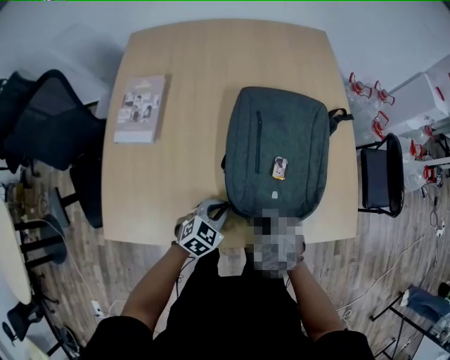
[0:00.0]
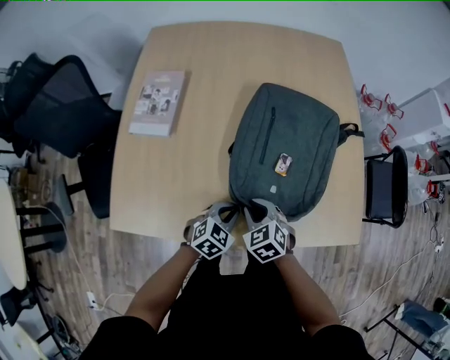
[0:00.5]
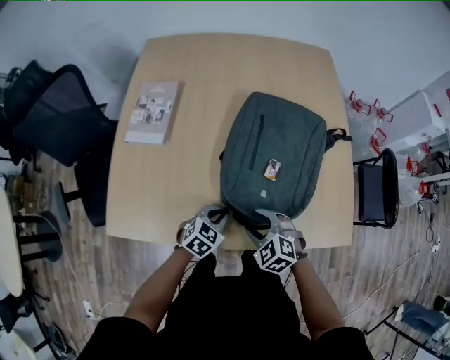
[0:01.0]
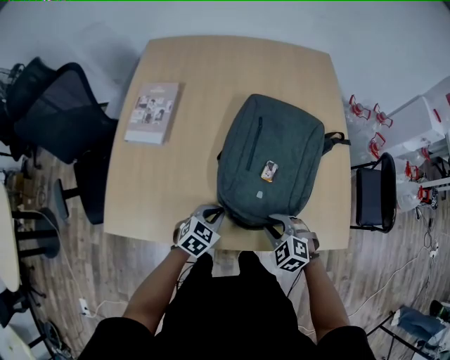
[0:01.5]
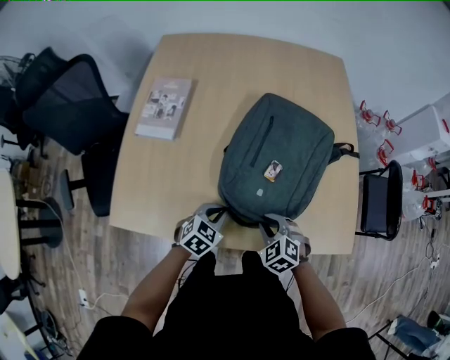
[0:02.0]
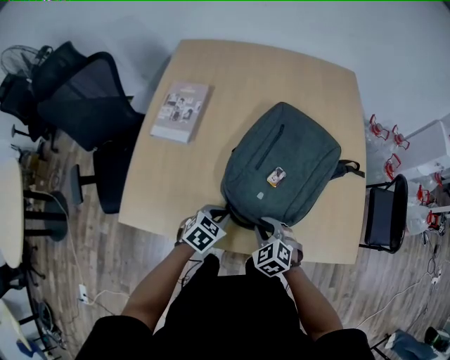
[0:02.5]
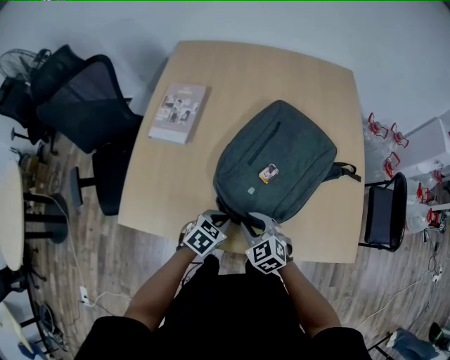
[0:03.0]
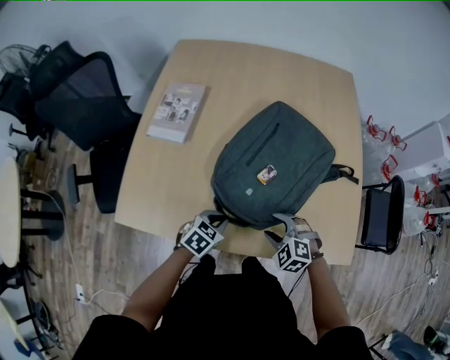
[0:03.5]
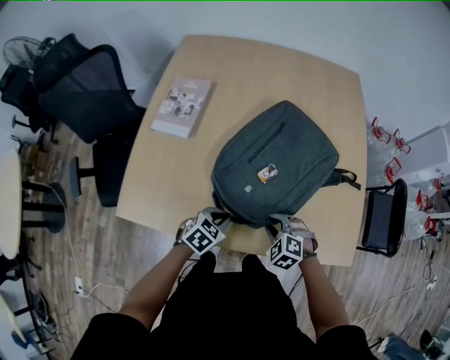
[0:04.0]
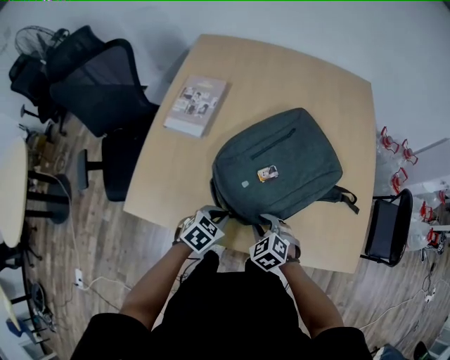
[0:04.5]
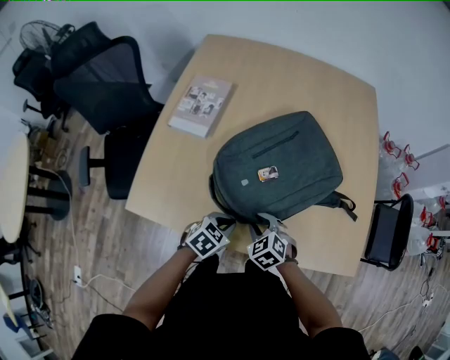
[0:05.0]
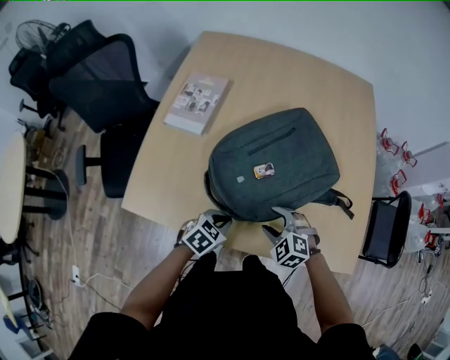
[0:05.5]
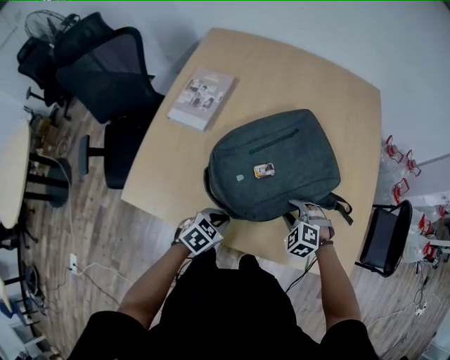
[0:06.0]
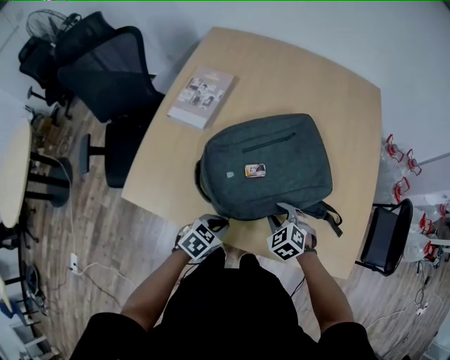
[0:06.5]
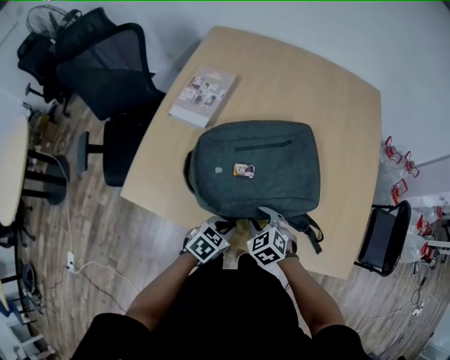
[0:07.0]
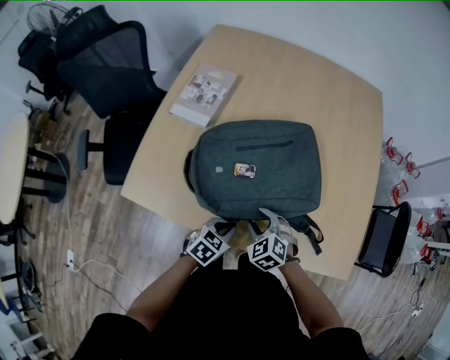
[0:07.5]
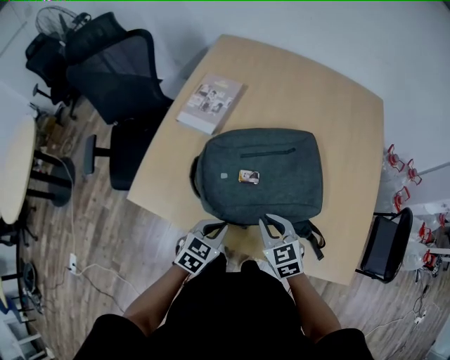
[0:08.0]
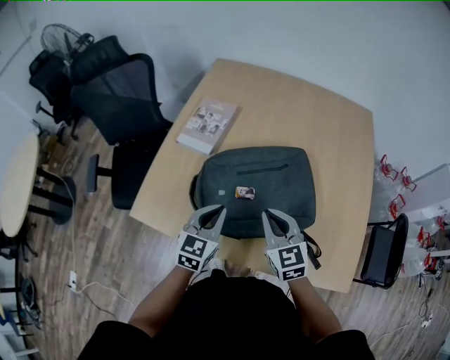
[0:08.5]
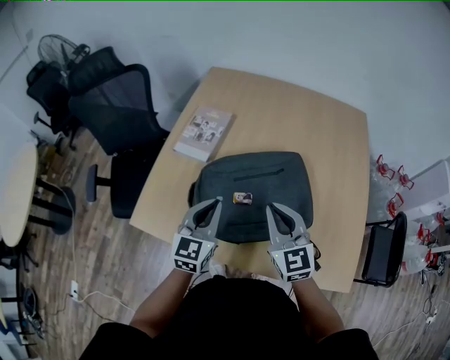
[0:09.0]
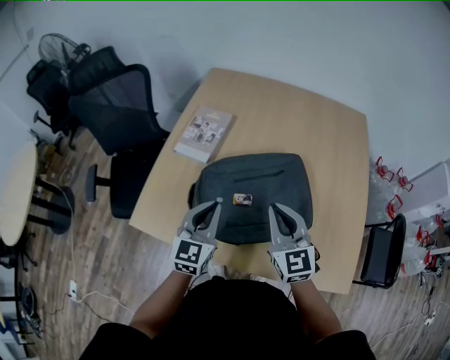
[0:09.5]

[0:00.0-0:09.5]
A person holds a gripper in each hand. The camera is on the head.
0:00.0 to 0:02.0: The right gripper goes left and right, some 10 cm each way, reversing 2 times, and opens and closes again.
0:02.0 to 0:04.0: The right gripper moves some 10 cm to the left and comes back, and opens, then closes again.
0:04.0 to 0:05.5: The right gripper opens up.
0:07.5 to 0:09.5: The left gripper travels upward and forward by about 25 cm, and tilts its fingers roughly 40 degrees upward; the right gripper moves upward, roughly 25 cm, tips its fingers upward by some 40 degrees, and closes up.

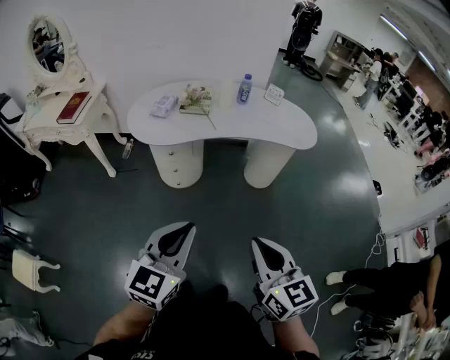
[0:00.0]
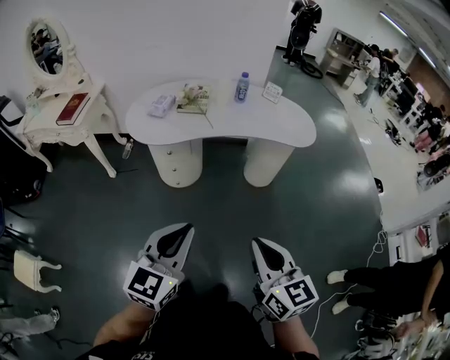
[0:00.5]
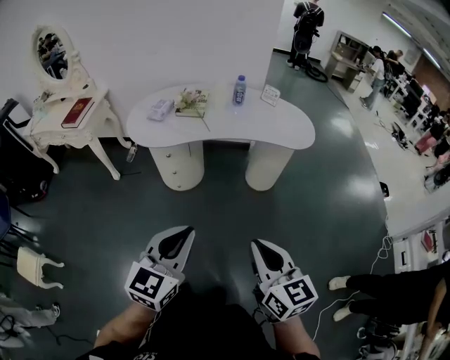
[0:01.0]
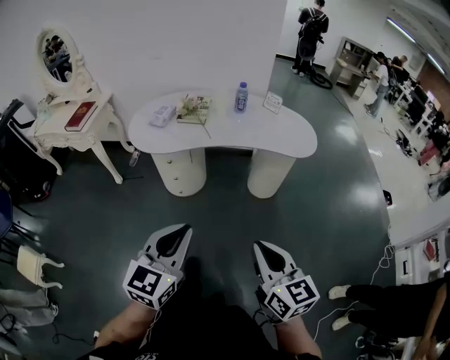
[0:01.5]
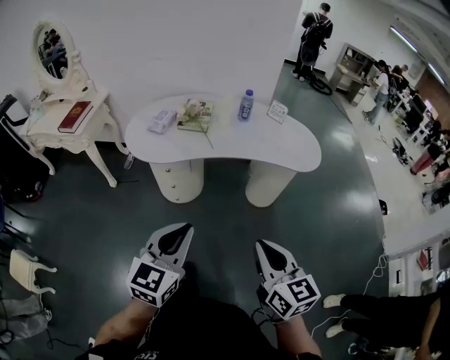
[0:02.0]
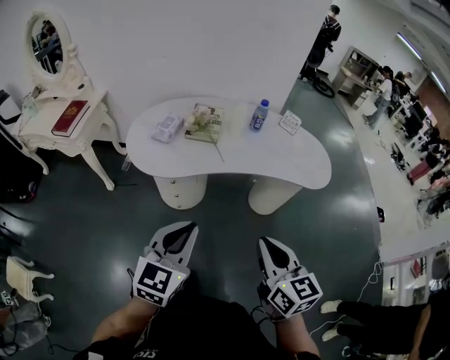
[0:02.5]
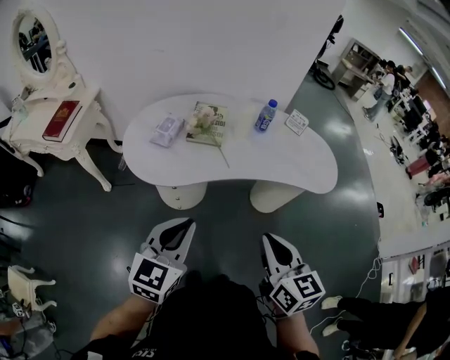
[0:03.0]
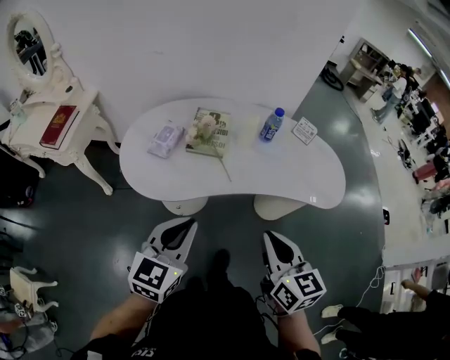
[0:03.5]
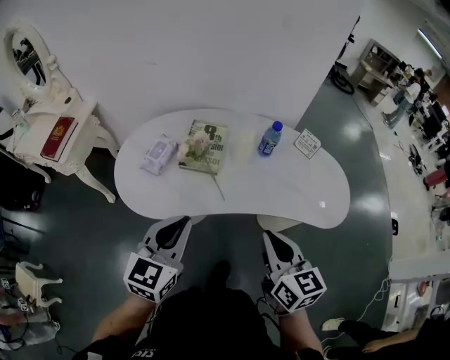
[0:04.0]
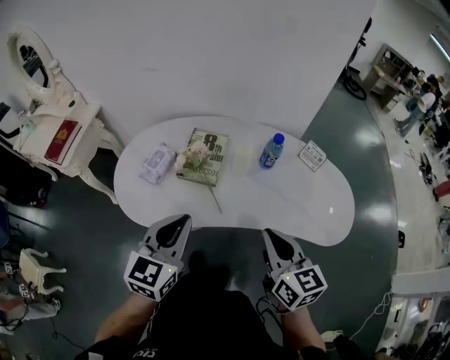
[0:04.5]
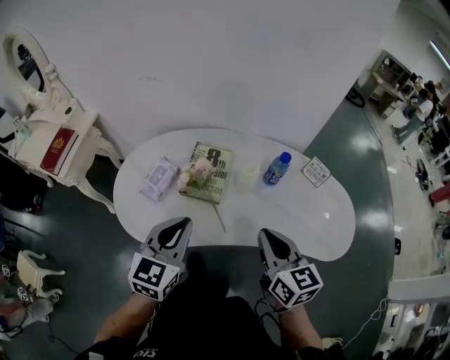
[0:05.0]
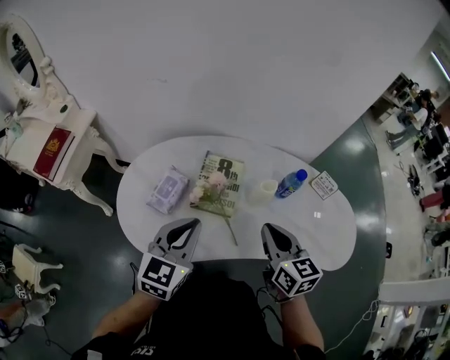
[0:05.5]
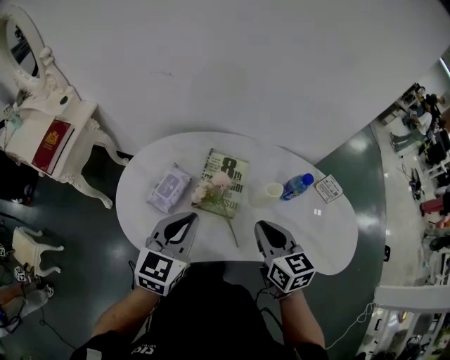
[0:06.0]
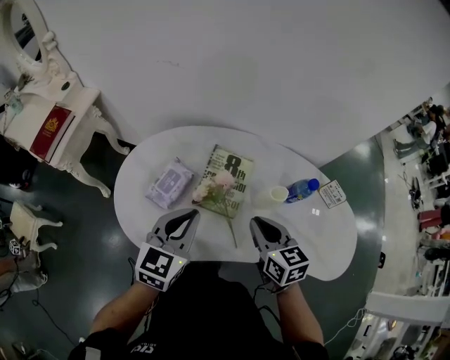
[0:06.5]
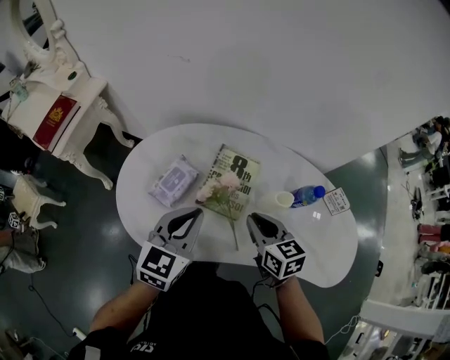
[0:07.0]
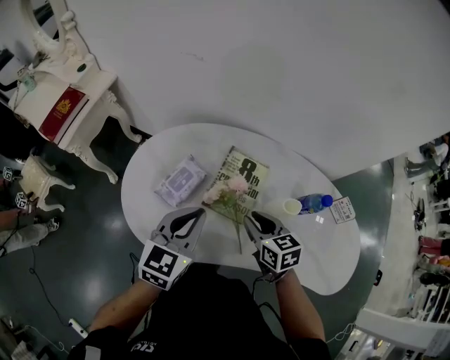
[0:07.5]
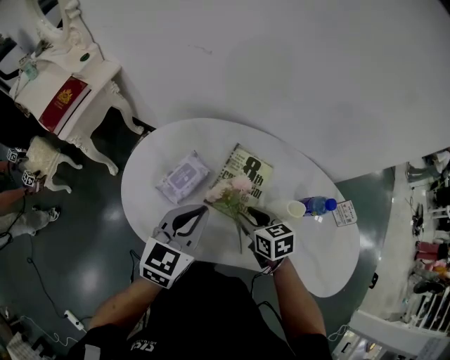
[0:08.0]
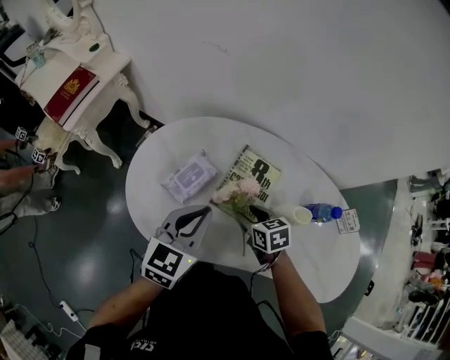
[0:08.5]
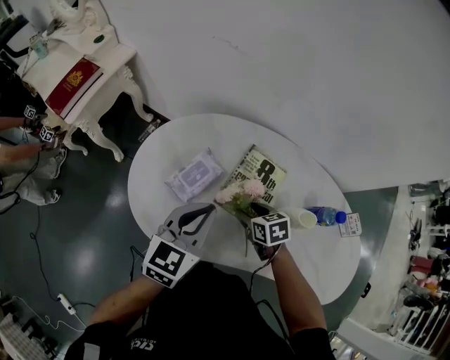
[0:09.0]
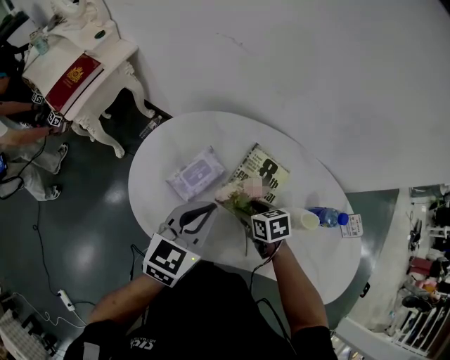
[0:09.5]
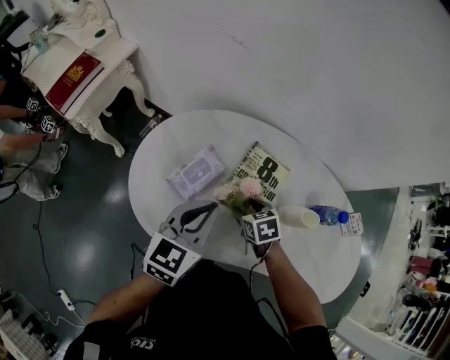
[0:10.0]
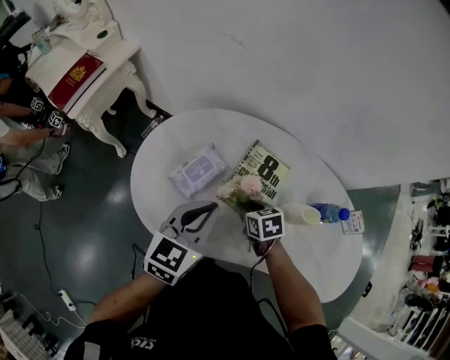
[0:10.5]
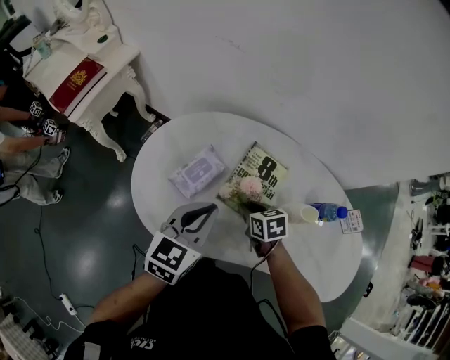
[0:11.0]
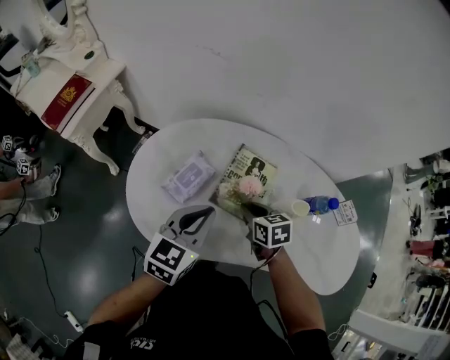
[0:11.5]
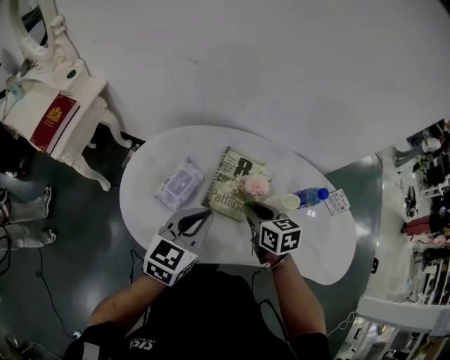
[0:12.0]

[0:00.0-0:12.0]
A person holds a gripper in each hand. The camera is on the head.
0:00.0 to 0:02.0: The right gripper moves forward and to the right, roughly 10 cm, while the left gripper travels forward by about 10 cm.
0:02.0 to 0:04.0: Both grippers move forward, roughly 35 cm.
0:04.0 to 0:06.0: Both grippers travel together forward, some 25 cm.
0:06.0 to 0:08.0: The right gripper shifts roughly 20 cm downward, forward and to the left, rotates roughly 30 degrees, and opens, while the left gripper changes place by approximately 5 cm.
0:08.0 to 0:10.0: The right gripper heads downward, covering about 10 cm, and opens its fingers.
0:10.0 to 0:12.0: The right gripper moves upward, approximately 15 cm, turns by some 30 degrees, and closes its fingers.

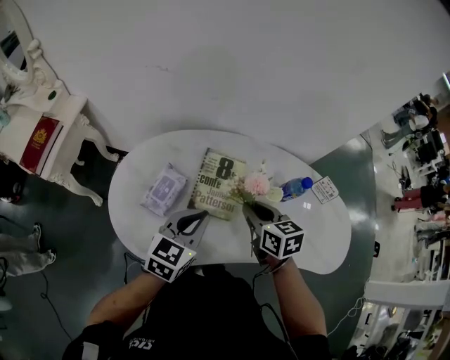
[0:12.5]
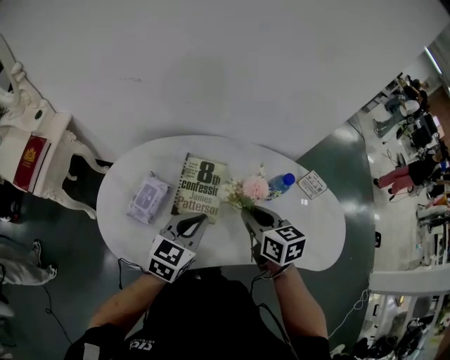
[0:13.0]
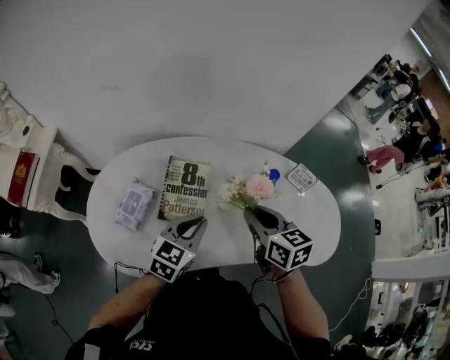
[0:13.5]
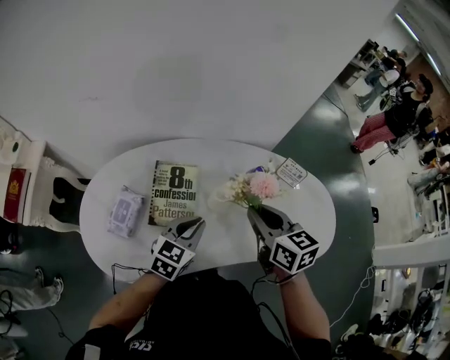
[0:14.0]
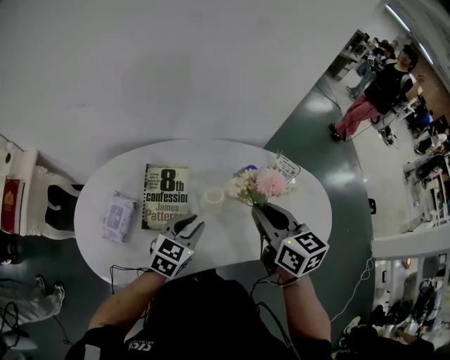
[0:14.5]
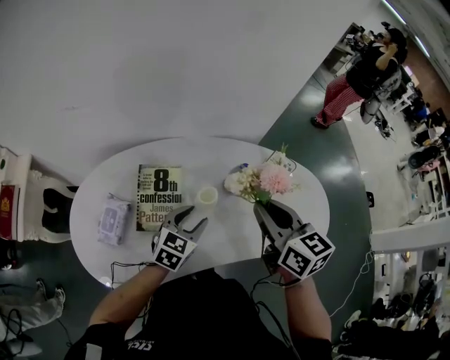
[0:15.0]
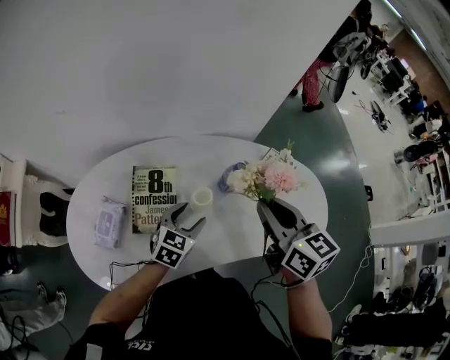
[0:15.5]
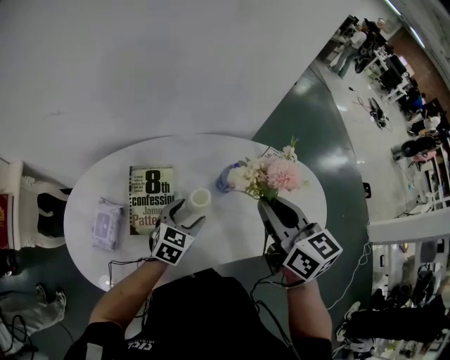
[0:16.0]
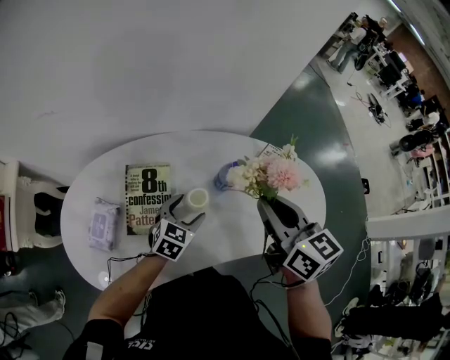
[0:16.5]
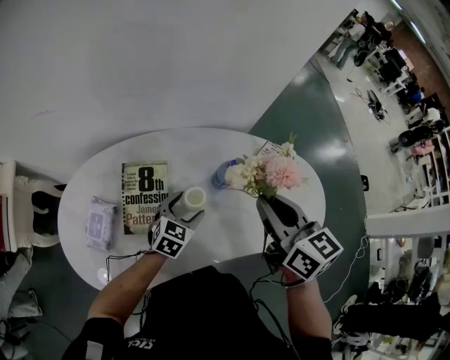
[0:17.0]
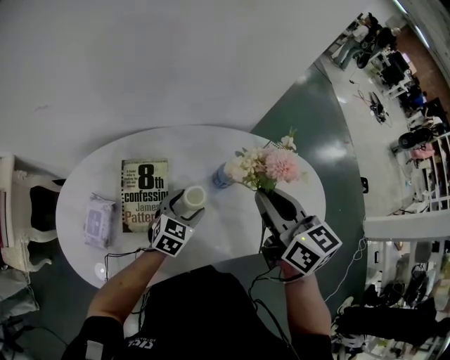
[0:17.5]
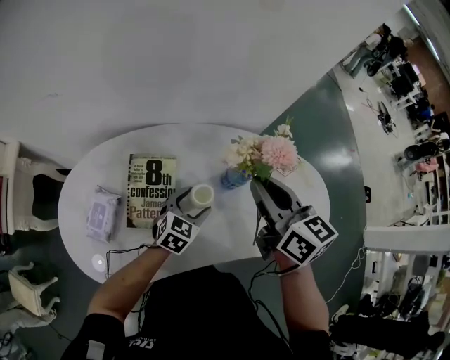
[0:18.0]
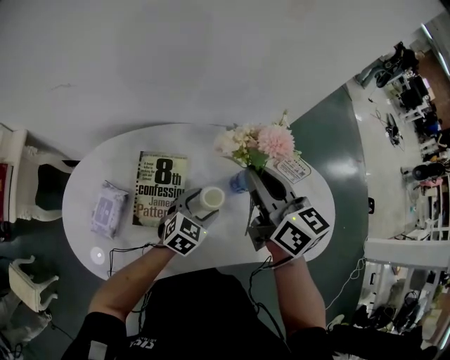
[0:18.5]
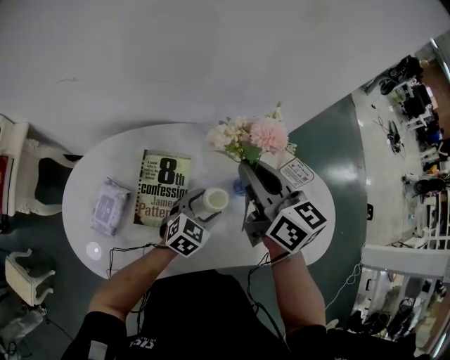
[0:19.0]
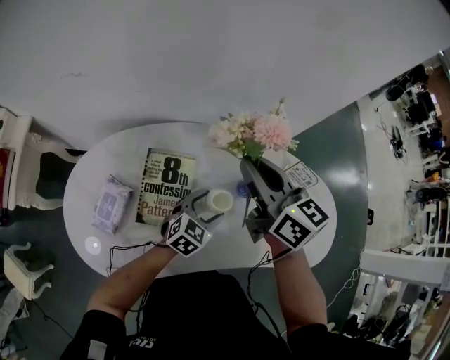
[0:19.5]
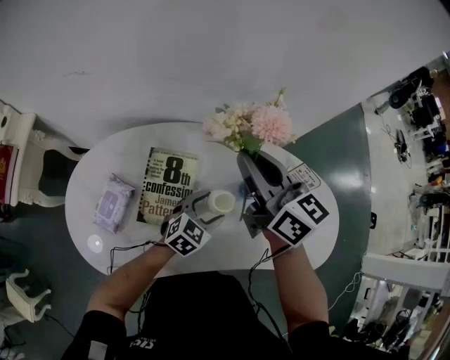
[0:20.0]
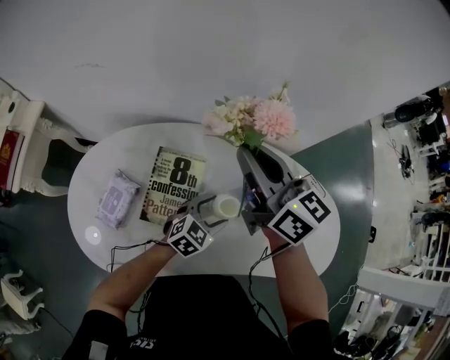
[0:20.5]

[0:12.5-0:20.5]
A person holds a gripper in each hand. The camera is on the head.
0:12.5 to 0:14.5: The right gripper is displaced to the right and upward by roughly 20 cm, and turns by approximately 20 degrees. Meanwhile the left gripper goes about 15 cm to the right and downward.
0:14.5 to 0:16.5: The right gripper ends up approximately 5 cm from where it was. Meanwhile the left gripper shifts roughly 10 cm downward and forward, and opens its fingers.
0:16.5 to 0:18.5: The right gripper heads to the left and forward, covering approximately 10 cm.
0:18.5 to 0:20.5: The right gripper heads to the left, covering roughly 10 cm.
